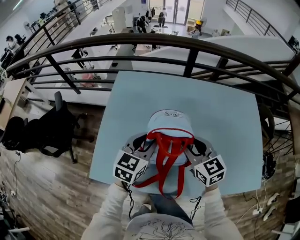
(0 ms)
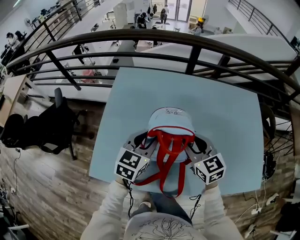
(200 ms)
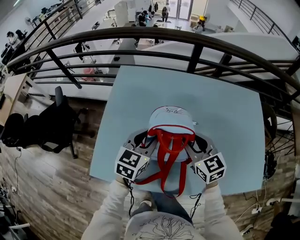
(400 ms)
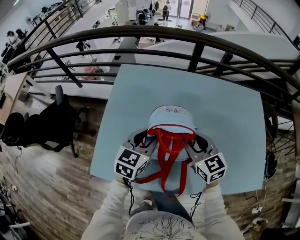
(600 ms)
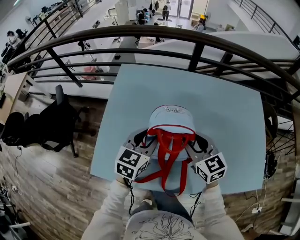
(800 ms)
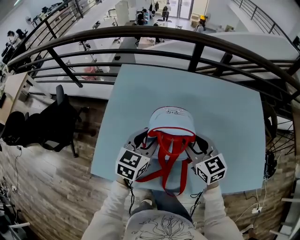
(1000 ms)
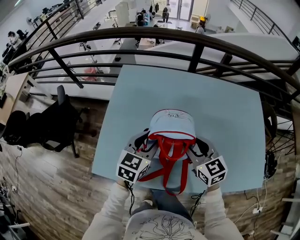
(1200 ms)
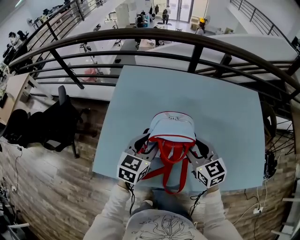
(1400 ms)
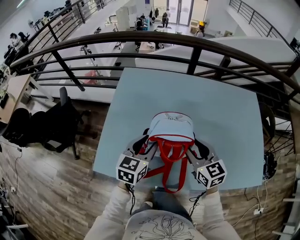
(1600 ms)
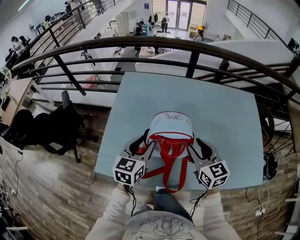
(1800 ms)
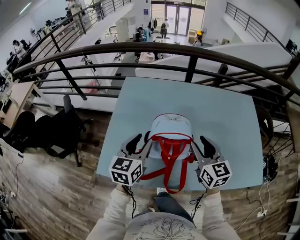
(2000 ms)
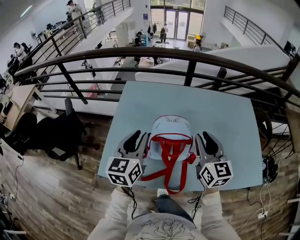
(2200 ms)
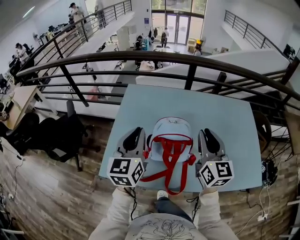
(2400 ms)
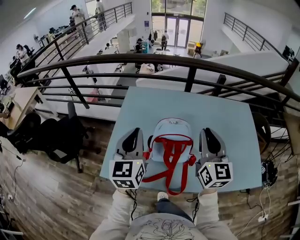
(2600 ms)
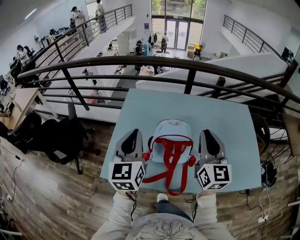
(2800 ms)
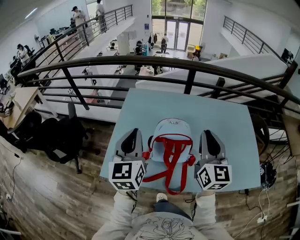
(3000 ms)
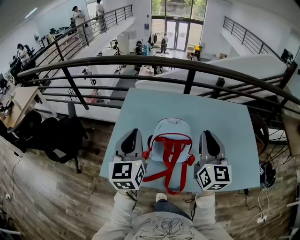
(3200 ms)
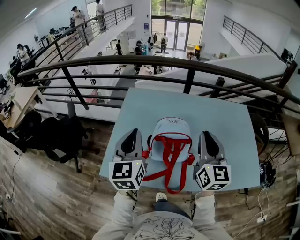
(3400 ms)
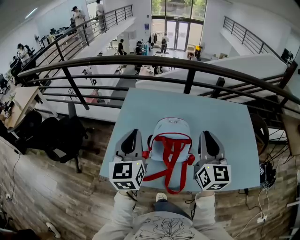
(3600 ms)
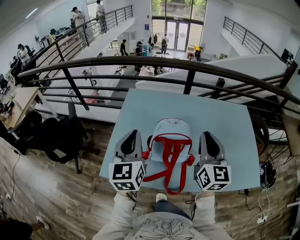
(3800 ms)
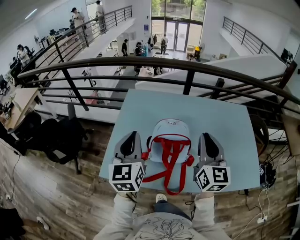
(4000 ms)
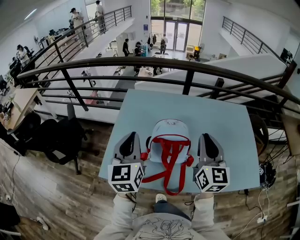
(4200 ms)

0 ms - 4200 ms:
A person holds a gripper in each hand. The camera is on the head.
0 ms - 1400 ms: The left gripper ends up some 5 cm from where it was.
1400 ms - 2800 ms: Both grippers travel together upward, some 20 cm. The right gripper swivels about 40 degrees, and closes; the left gripper changes its angle by approximately 30 degrees, and closes.
2800 ms - 4200 ms: The grippers stay close to where they were, moving slightly.

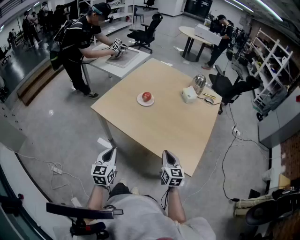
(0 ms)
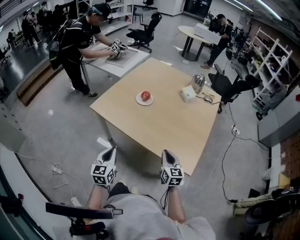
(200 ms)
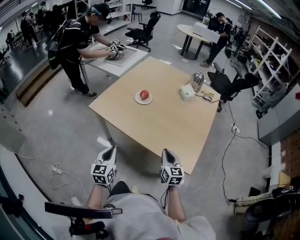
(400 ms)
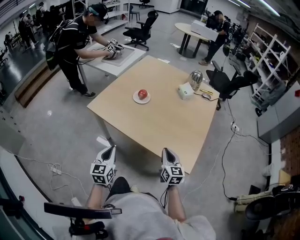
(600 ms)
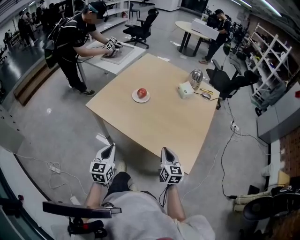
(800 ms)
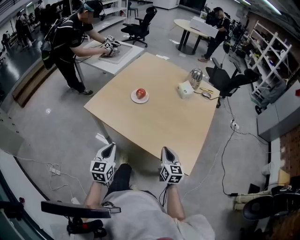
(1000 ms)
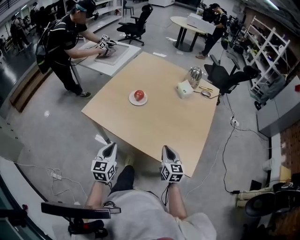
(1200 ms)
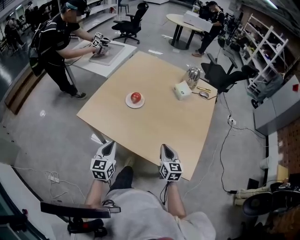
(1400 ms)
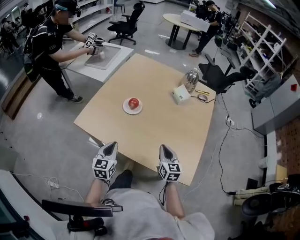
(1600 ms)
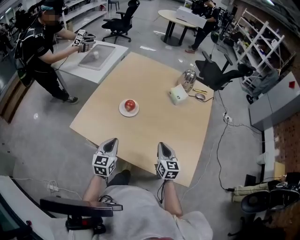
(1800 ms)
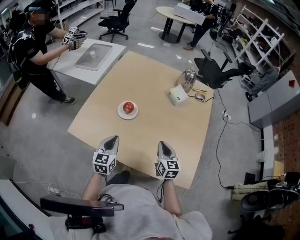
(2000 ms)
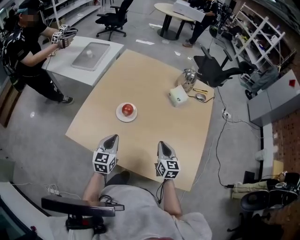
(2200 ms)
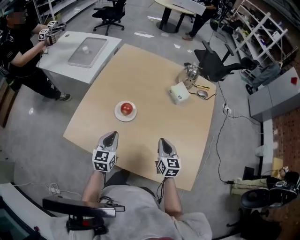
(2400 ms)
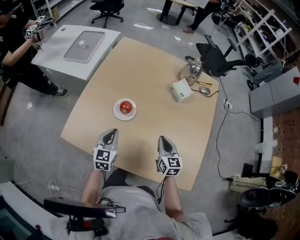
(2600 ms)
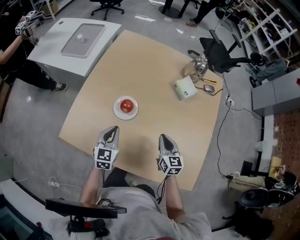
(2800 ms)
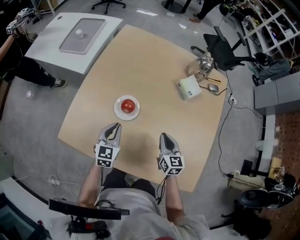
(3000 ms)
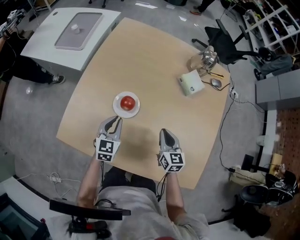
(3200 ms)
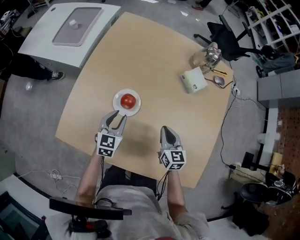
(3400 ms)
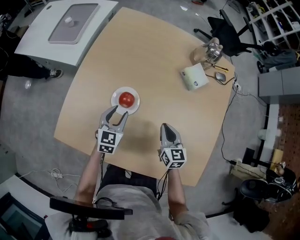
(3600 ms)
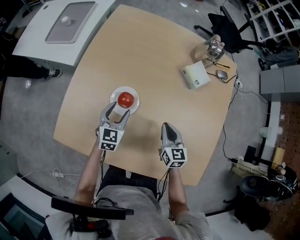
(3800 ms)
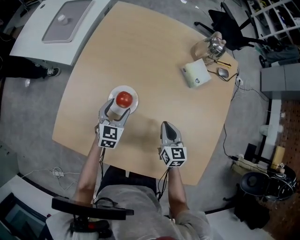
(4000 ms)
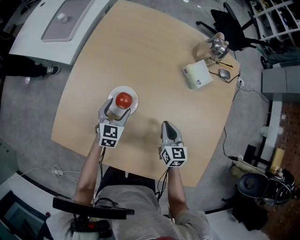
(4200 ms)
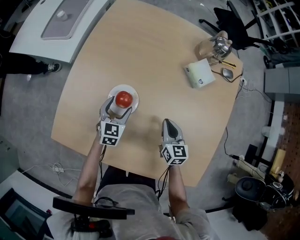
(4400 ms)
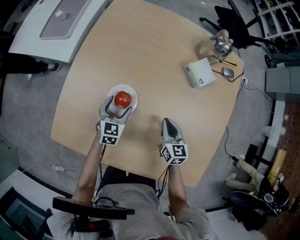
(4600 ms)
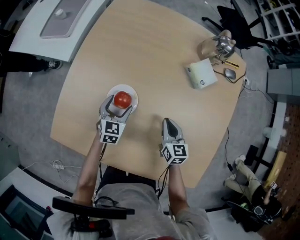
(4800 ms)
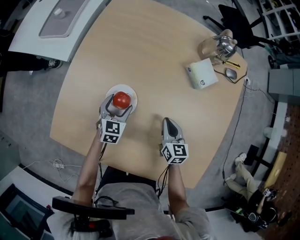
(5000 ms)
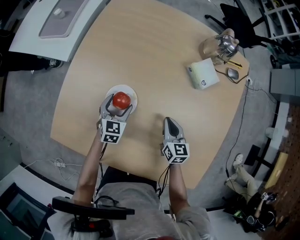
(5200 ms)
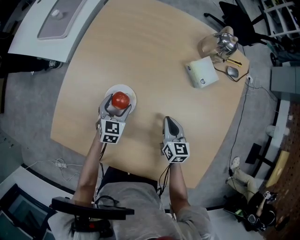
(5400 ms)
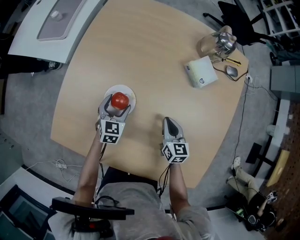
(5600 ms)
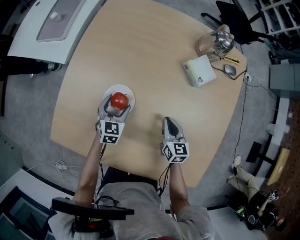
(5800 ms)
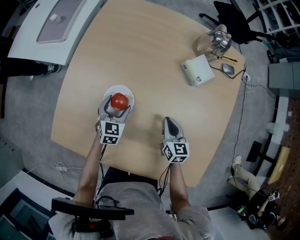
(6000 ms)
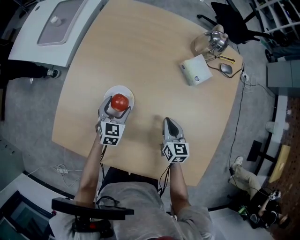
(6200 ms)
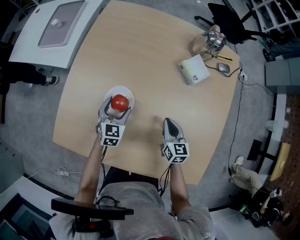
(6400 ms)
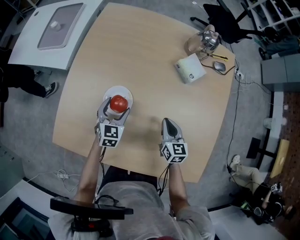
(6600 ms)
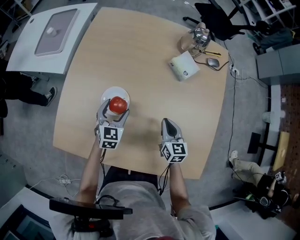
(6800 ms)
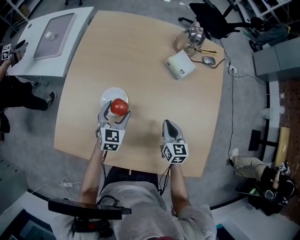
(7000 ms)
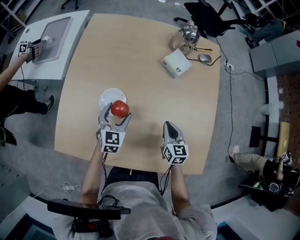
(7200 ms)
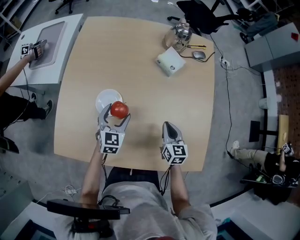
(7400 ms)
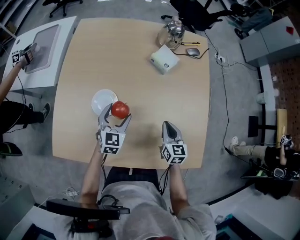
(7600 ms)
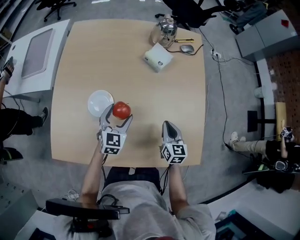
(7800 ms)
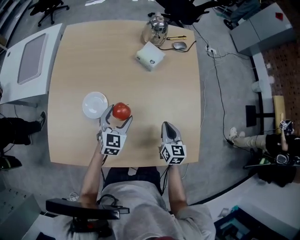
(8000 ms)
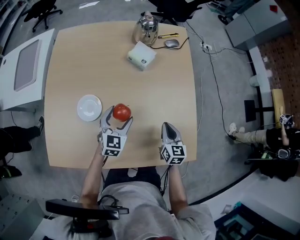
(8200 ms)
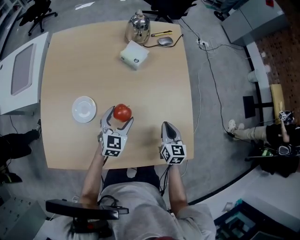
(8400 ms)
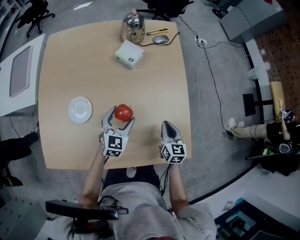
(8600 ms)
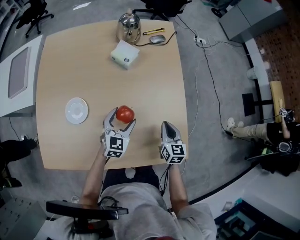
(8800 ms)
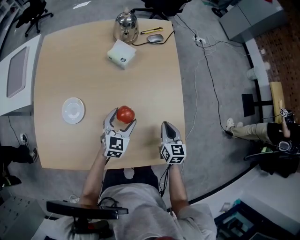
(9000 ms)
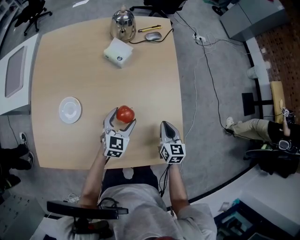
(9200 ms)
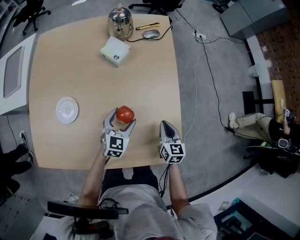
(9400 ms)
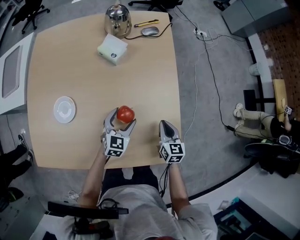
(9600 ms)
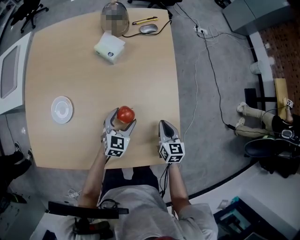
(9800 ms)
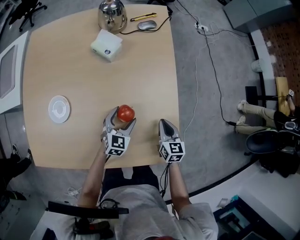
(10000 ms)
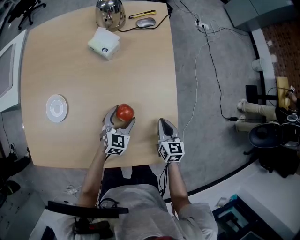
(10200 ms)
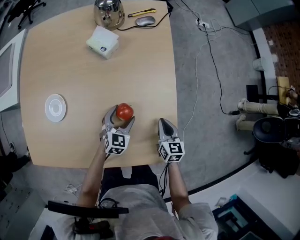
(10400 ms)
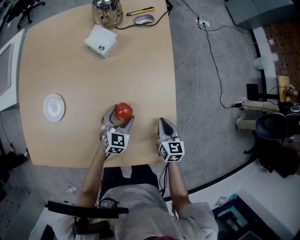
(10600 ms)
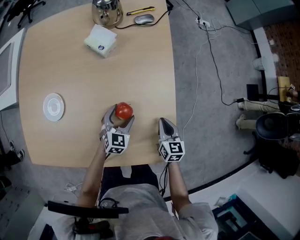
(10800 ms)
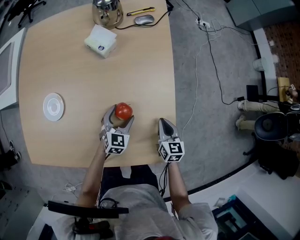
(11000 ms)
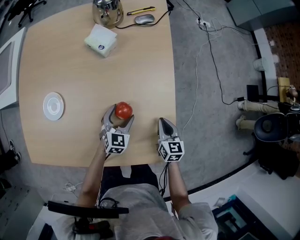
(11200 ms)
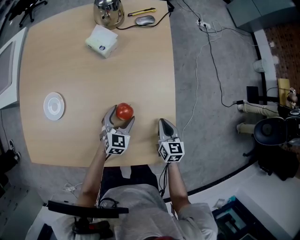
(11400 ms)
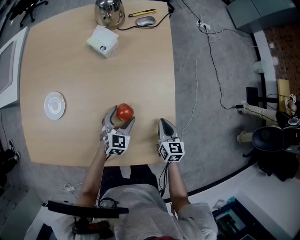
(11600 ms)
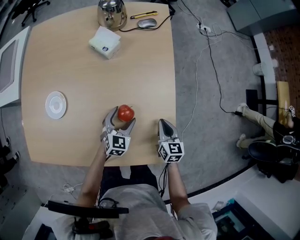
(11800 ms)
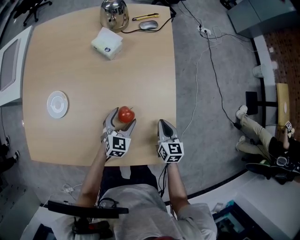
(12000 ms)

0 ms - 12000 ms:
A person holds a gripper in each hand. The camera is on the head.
0 ms - 1600 ms: The grippers both shift forward by about 15 cm.
1600 ms - 3000 ms: The grippers both shift forward by roughly 20 cm.
3000 ms - 4400 ms: The left gripper moves downward and forward, approximately 15 cm, and opens. The right gripper travels downward and forward by approximately 10 cm.
4400 ms - 6000 ms: The grippers move only a little.
6000 ms - 7600 ms: The left gripper heads upward, to the right and backward, covering some 15 cm, while the right gripper shifts some 15 cm backward, to the right and upward.
7600 ms - 9000 ms: Both grippers move to the right, approximately 20 cm.
9000 ms - 10400 ms: The right gripper heads to the right and downward, covering about 10 cm. The left gripper moves downward and to the right, about 10 cm.
10400 ms - 12000 ms: The grippers make only small movements.

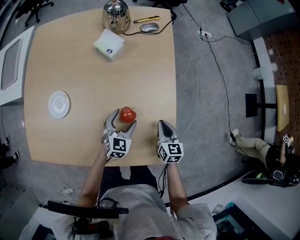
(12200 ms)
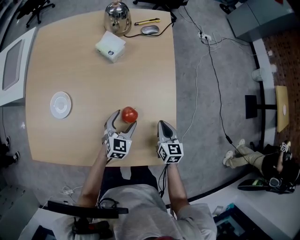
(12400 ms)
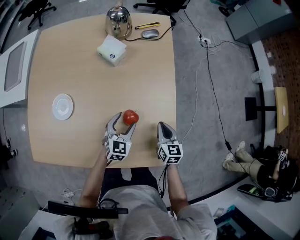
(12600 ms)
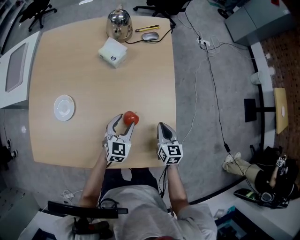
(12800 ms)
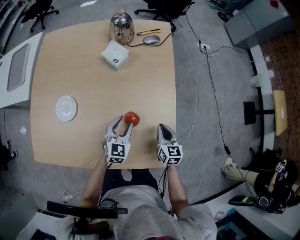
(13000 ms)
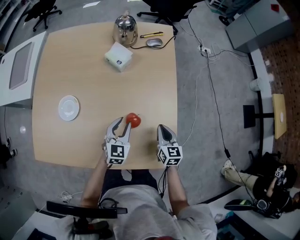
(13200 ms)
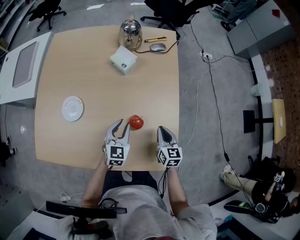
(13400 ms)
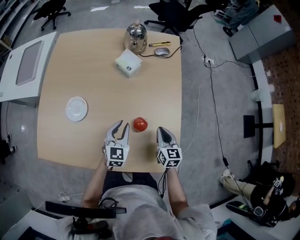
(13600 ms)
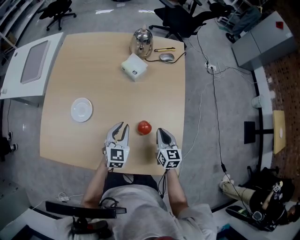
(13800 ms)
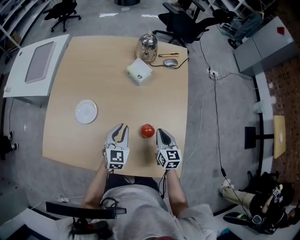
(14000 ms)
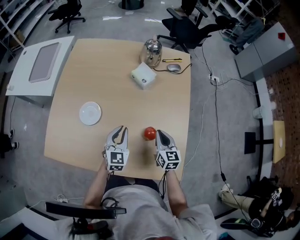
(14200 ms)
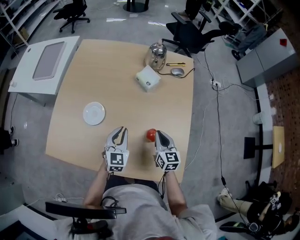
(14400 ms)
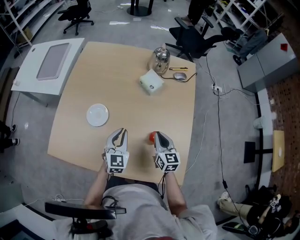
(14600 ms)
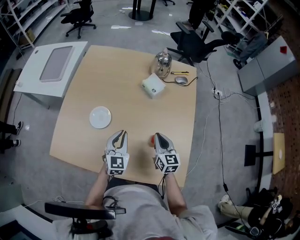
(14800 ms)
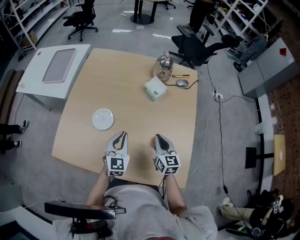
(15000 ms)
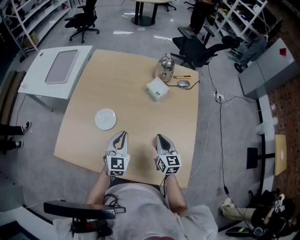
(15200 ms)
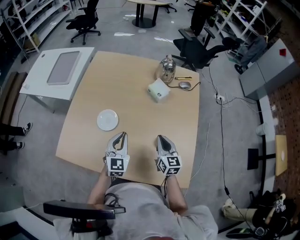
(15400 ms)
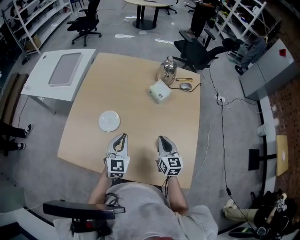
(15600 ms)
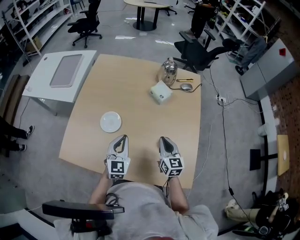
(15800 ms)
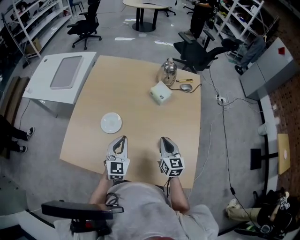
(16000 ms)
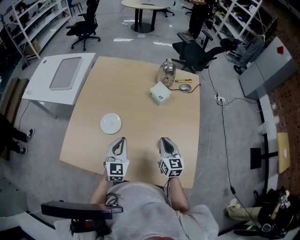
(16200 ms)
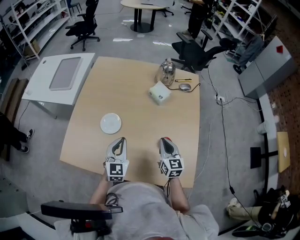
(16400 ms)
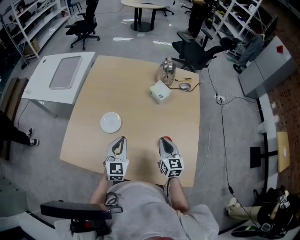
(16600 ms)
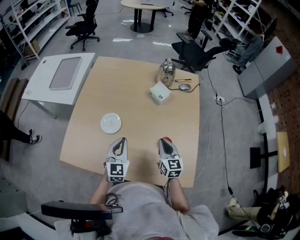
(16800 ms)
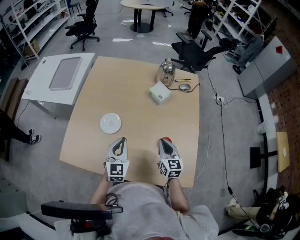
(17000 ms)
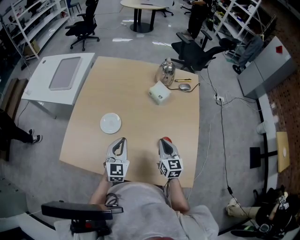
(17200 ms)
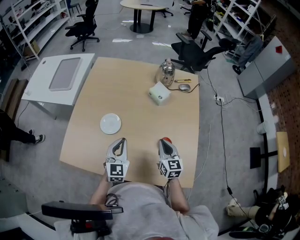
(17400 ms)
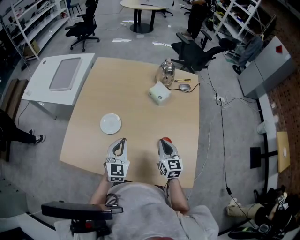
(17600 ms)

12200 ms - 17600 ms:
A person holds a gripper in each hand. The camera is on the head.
12200 ms - 13600 ms: The right gripper goes some 10 cm to the left and upward, while the left gripper moves upward and to the left, about 10 cm, and closes.
13600 ms - 15000 ms: Both grippers travel together to the left and upward, about 15 cm.
15000 ms - 16200 ms: The left gripper changes place by approximately 5 cm.
16200 ms - 17600 ms: Both grippers stay about where they are.

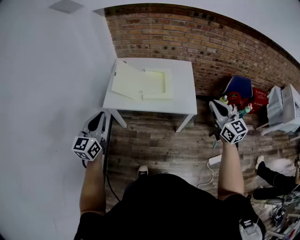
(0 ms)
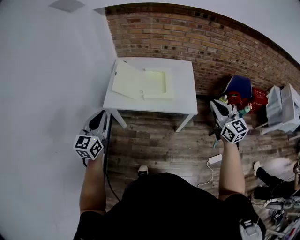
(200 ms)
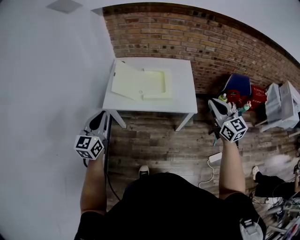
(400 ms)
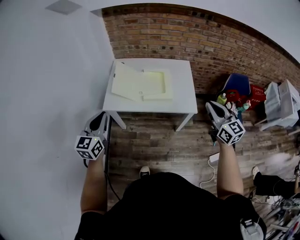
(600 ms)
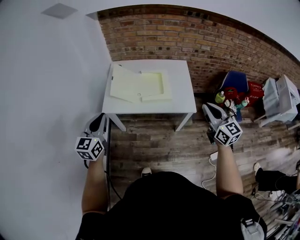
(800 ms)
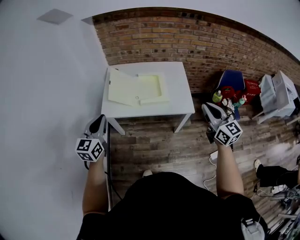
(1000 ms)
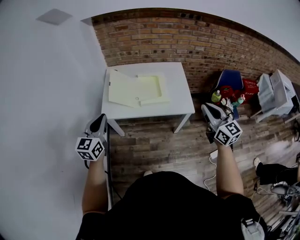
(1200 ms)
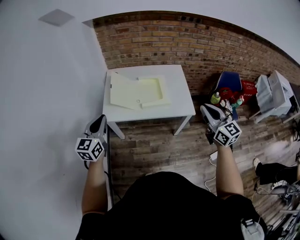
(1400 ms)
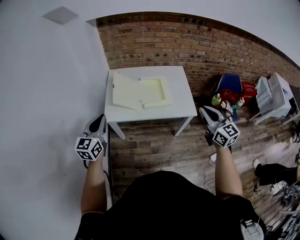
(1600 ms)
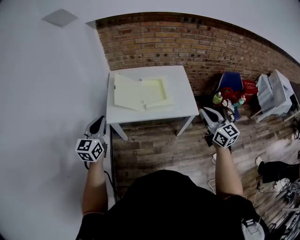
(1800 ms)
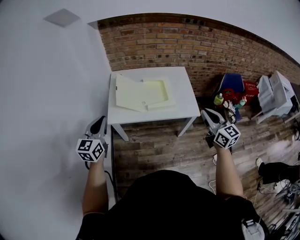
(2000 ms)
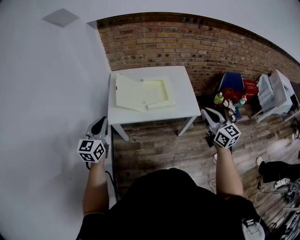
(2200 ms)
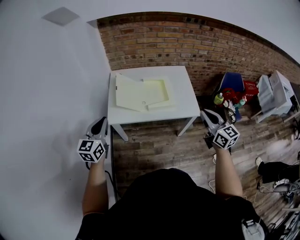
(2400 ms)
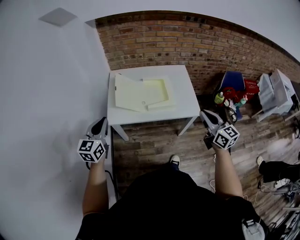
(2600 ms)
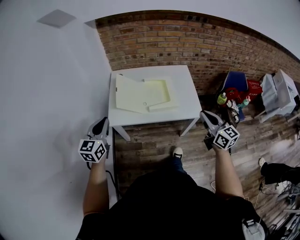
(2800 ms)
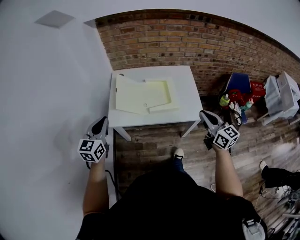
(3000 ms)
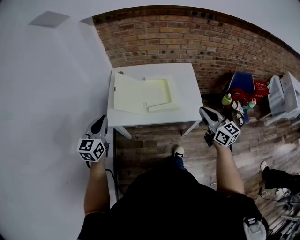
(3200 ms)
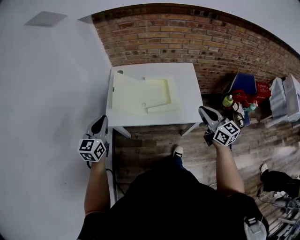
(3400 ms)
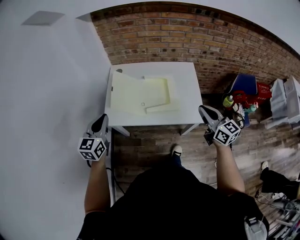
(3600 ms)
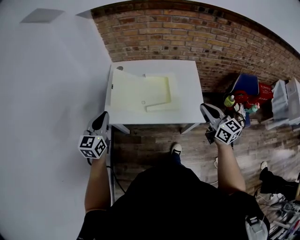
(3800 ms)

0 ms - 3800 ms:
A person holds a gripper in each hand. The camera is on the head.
0 ms - 1200 ms: The right gripper moves to the left, approximately 5 cm, while the left gripper goes some 5 cm forward.
1200 ms - 2600 ms: Both grippers move to the left, some 5 cm.
2600 ms - 3800 ms: Both grippers travel together forward and to the right, some 15 cm.
